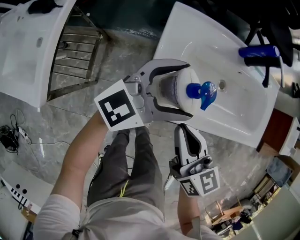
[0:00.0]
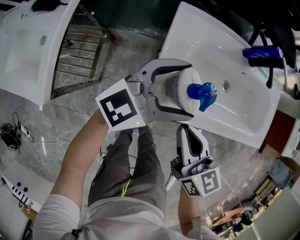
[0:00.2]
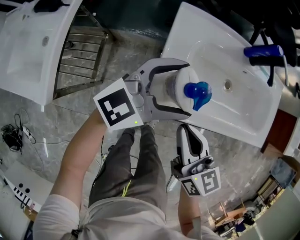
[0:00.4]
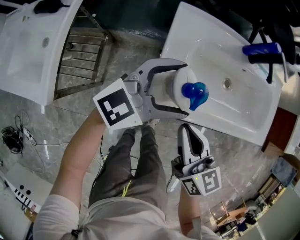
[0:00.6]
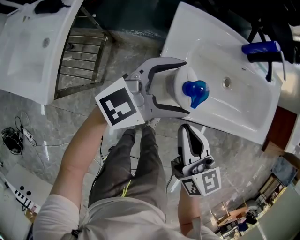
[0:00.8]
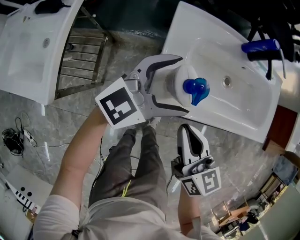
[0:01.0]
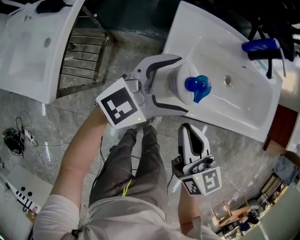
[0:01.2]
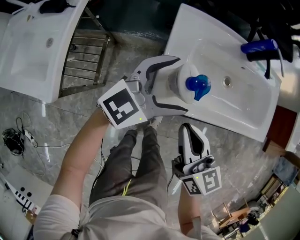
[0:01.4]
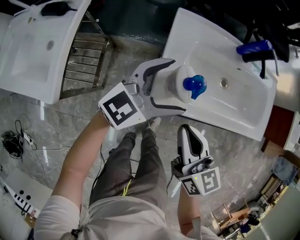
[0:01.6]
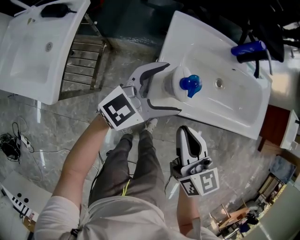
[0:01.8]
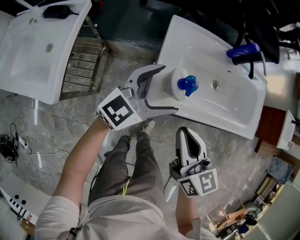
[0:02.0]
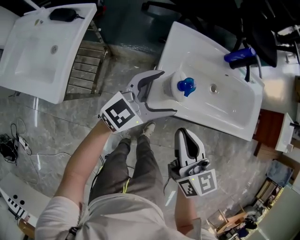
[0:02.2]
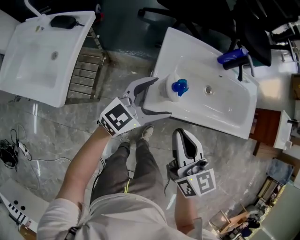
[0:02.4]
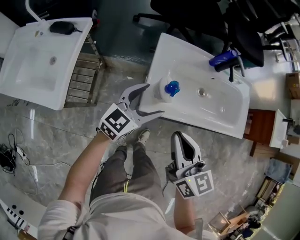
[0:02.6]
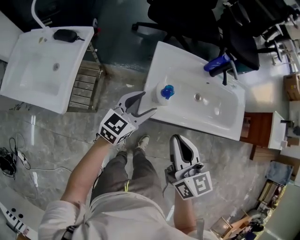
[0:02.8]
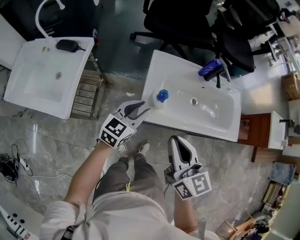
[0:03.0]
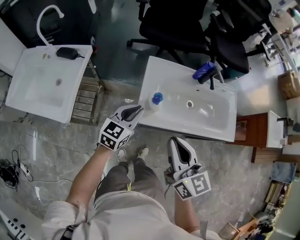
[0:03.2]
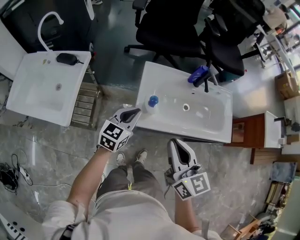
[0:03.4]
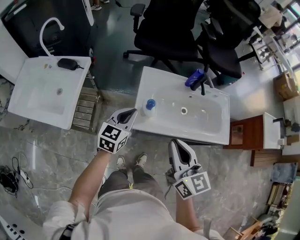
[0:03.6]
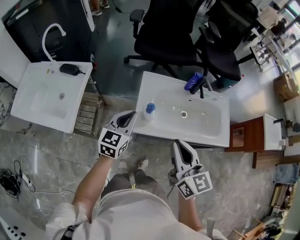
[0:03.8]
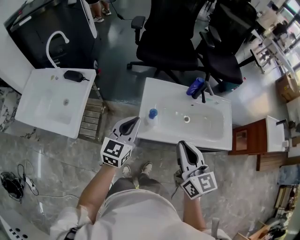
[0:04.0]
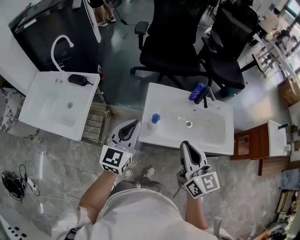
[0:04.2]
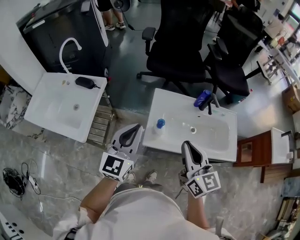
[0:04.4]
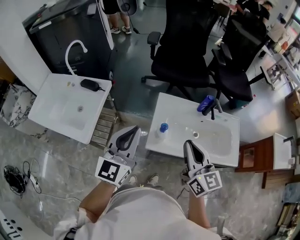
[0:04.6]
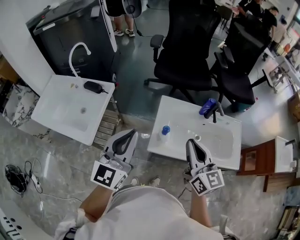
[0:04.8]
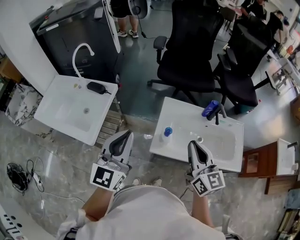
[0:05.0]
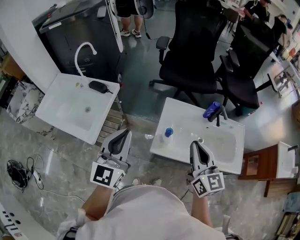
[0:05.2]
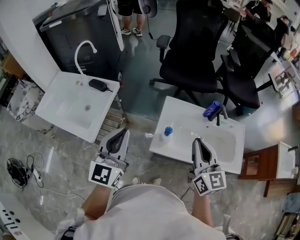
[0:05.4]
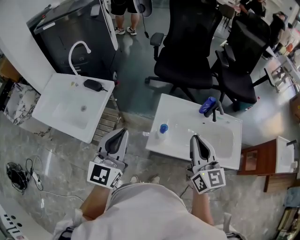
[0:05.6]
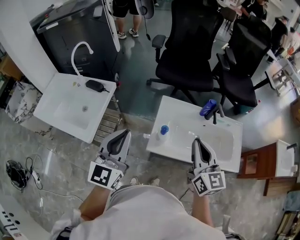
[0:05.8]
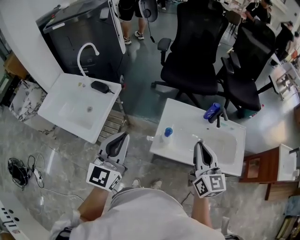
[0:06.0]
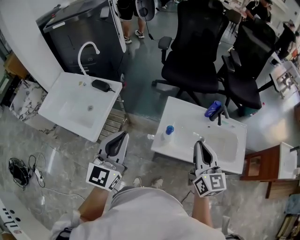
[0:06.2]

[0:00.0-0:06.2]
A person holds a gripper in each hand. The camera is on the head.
0:00.0 to 0:01.6: The left gripper moves about 5 cm. Meanwhile the right gripper moves about 5 cm.
0:01.6 to 0:03.2: The right gripper moves upward, roughly 20 cm. Meanwhile the left gripper moves backward and upward, some 5 cm, swivels about 30 degrees, and closes.
0:03.2 to 0:04.6: The left gripper travels upward by roughly 25 cm, and turns by about 30 degrees. Meanwhile the right gripper travels upward by some 10 cm.
0:04.6 to 0:06.2: The left gripper ends up roughly 5 cm from where it was.

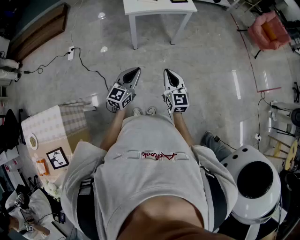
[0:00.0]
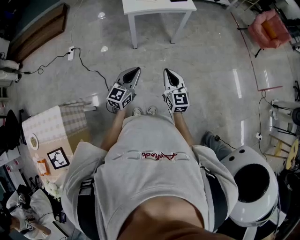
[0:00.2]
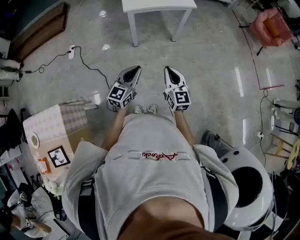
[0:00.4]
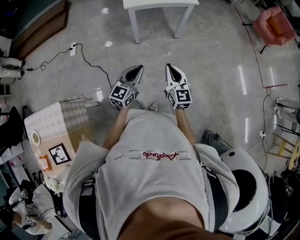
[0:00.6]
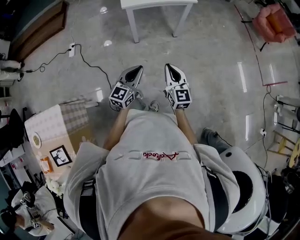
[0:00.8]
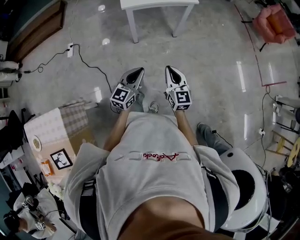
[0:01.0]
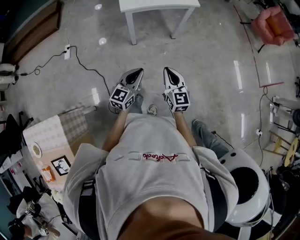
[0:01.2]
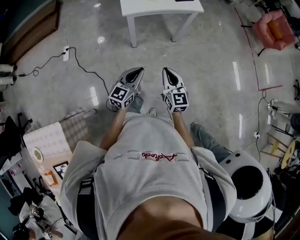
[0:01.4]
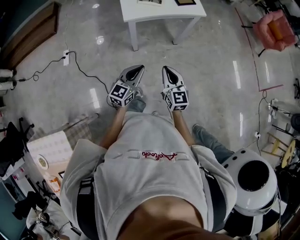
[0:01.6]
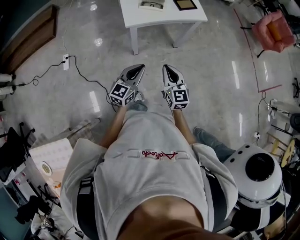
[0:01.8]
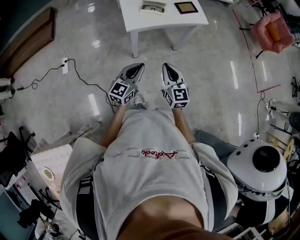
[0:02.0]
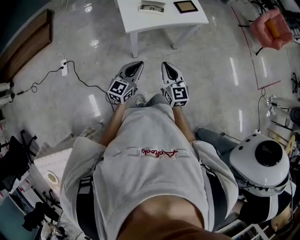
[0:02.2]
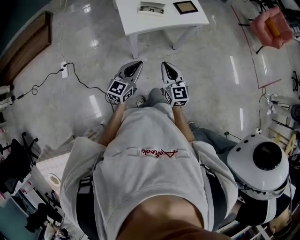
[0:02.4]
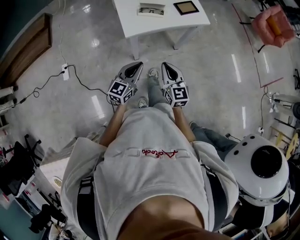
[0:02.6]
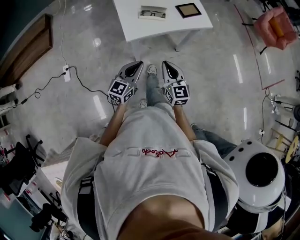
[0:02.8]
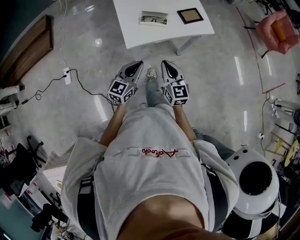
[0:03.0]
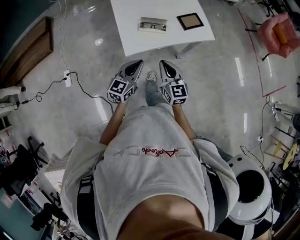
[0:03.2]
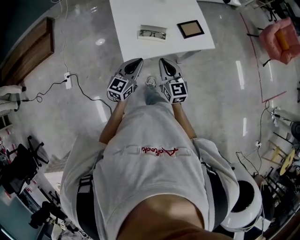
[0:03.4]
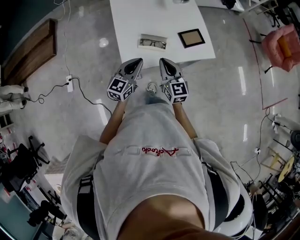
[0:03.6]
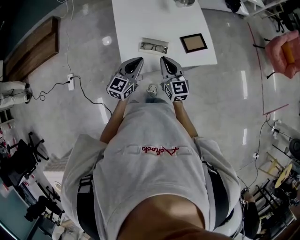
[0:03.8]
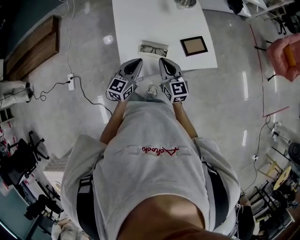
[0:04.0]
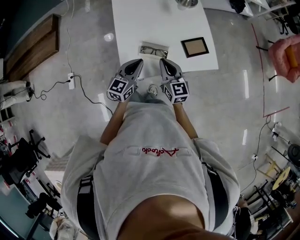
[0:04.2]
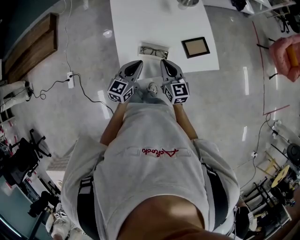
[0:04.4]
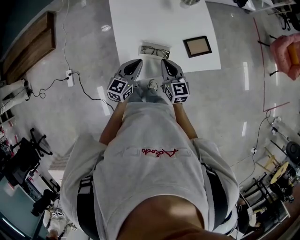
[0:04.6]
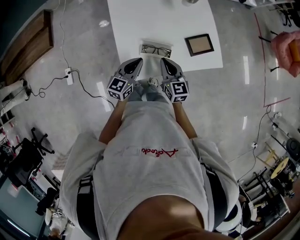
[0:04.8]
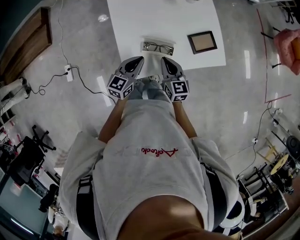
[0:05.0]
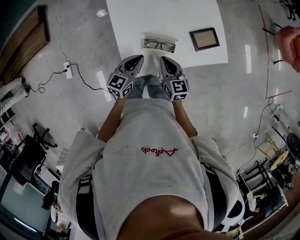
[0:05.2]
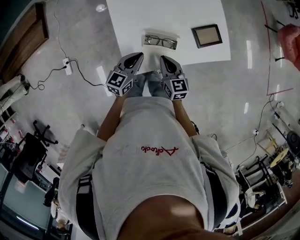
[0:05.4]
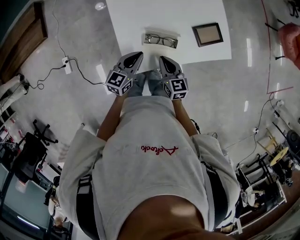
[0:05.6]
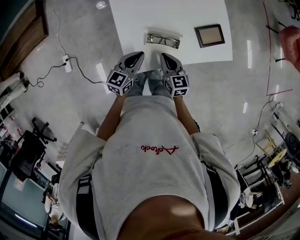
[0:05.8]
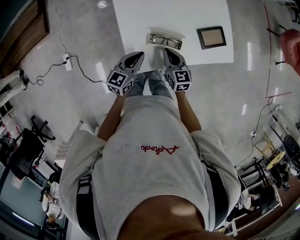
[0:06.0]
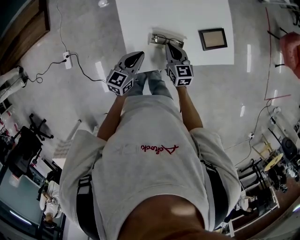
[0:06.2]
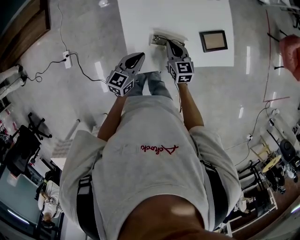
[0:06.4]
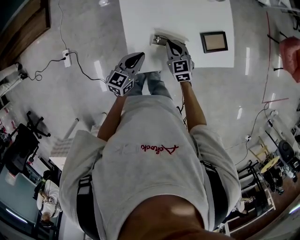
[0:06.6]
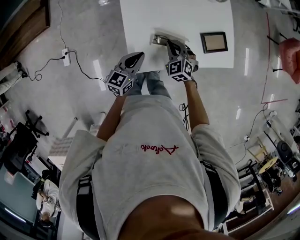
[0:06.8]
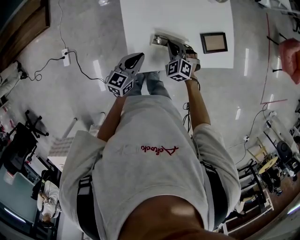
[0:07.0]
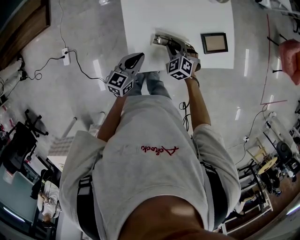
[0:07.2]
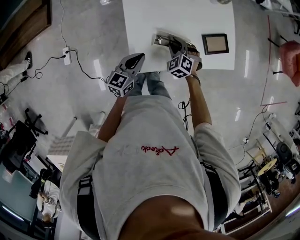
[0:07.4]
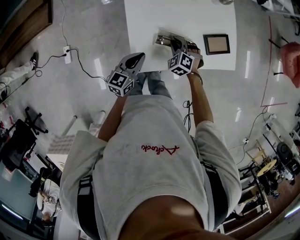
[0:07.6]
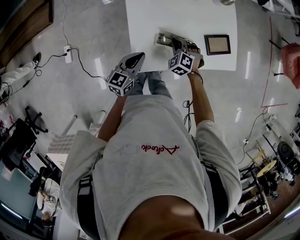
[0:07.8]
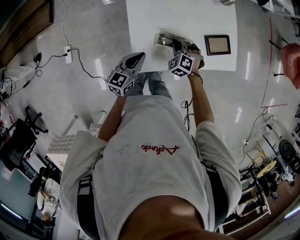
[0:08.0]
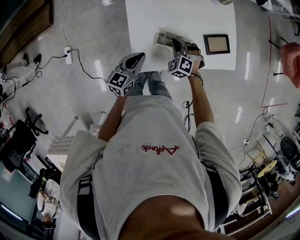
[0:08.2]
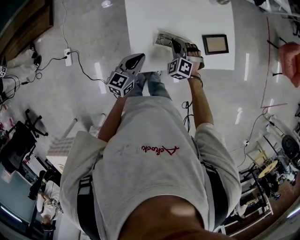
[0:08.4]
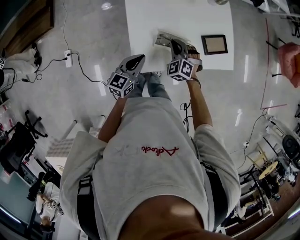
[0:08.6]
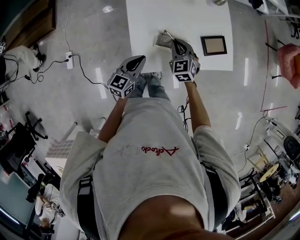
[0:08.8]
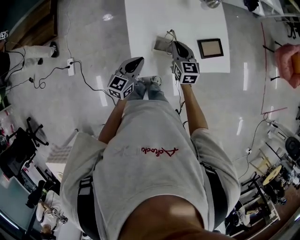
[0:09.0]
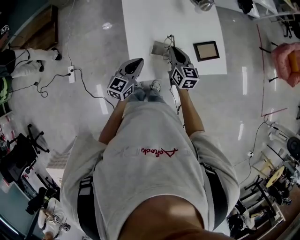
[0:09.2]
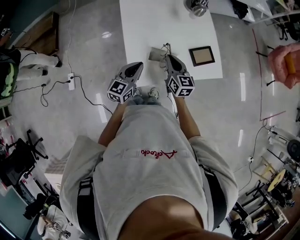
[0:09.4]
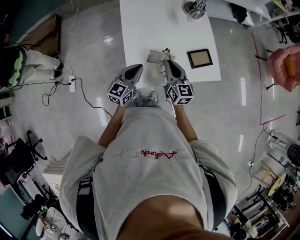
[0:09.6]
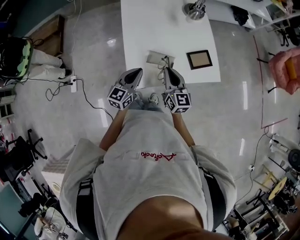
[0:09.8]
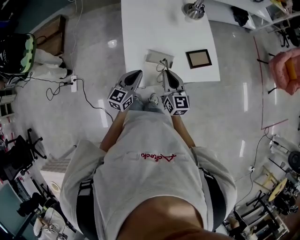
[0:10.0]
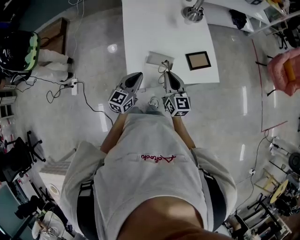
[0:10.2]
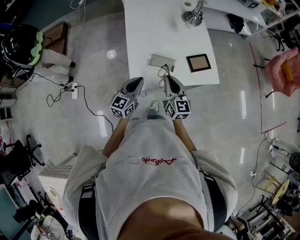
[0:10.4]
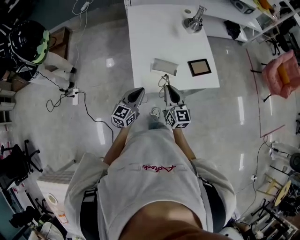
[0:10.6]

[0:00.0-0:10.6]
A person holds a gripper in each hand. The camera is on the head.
0:00.0 to 0:01.6: The left gripper travels forward by approximately 15 cm. Meanwhile the right gripper is displaced forward and to the left by some 15 cm.
0:01.6 to 0:03.0: The grippers both shift forward and to the left by about 20 cm.
0:03.0 to 0:04.6: The two grippers go about 25 cm forward.
0:04.6 to 0:06.0: The right gripper is displaced downward by approximately 10 cm; the left gripper changes place by approximately 5 cm.
0:06.0 to 0:07.6: The right gripper travels downward by about 5 cm, twists roughly 60 degrees counterclockwise, seen from behind, and opens.
0:07.6 to 0:09.0: The right gripper travels upward by approximately 10 cm, and rotates around the line of its fingers by roughly 50 degrees, clockwise from behind.
0:09.0 to 0:10.6: The left gripper shifts about 10 cm backward. The right gripper travels backward and upward by roughly 20 cm.

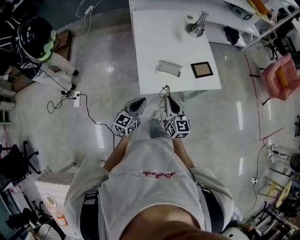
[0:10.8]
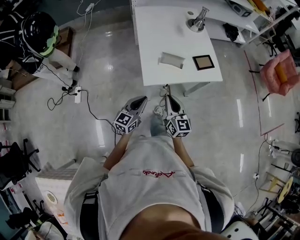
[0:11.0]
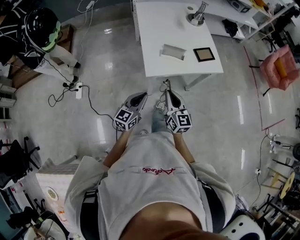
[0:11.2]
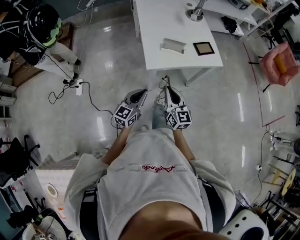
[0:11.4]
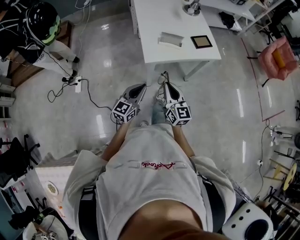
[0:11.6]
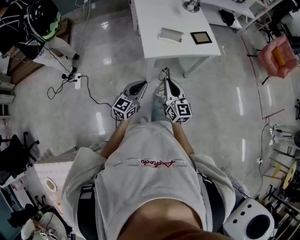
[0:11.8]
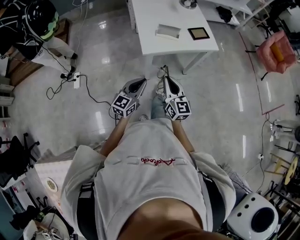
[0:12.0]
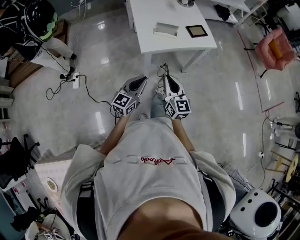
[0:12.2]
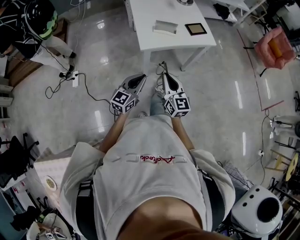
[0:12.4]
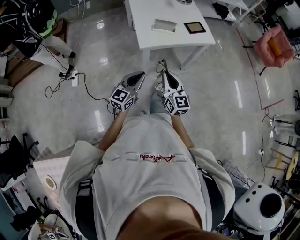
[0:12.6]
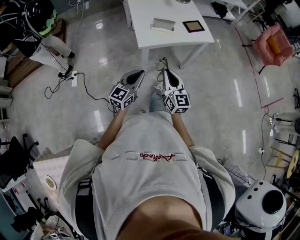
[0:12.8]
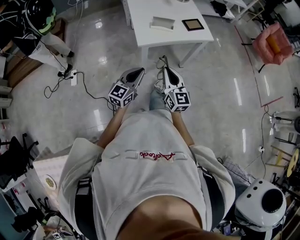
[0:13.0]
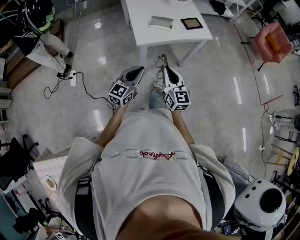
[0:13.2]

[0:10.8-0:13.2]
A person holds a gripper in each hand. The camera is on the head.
0:10.8 to 0:12.0: Both grippers travel together backward, roughly 15 cm.
0:12.0 to 0:13.2: The grippers make only small movements.

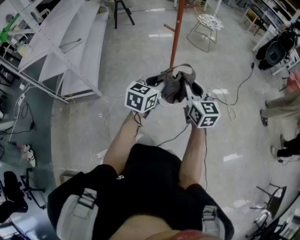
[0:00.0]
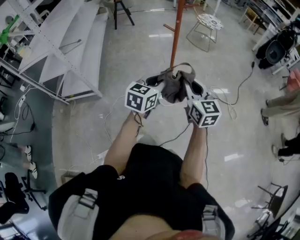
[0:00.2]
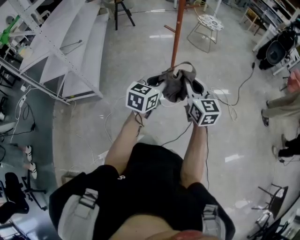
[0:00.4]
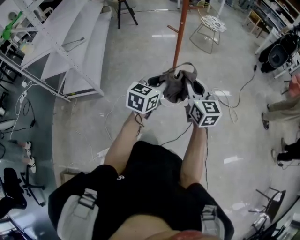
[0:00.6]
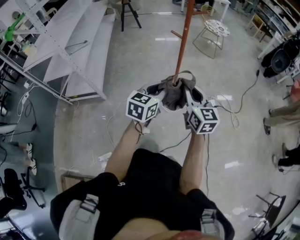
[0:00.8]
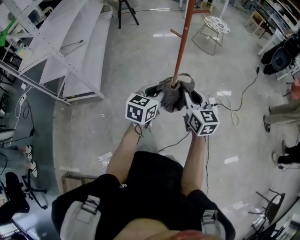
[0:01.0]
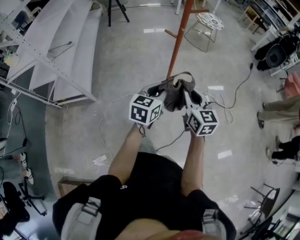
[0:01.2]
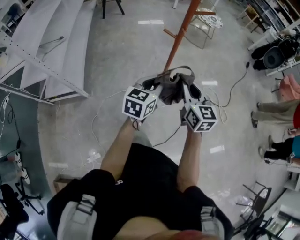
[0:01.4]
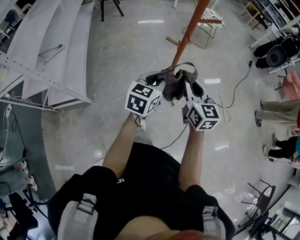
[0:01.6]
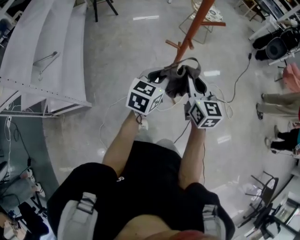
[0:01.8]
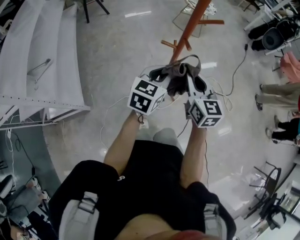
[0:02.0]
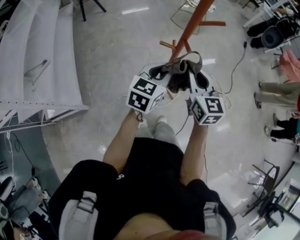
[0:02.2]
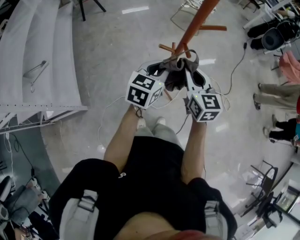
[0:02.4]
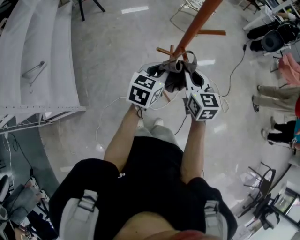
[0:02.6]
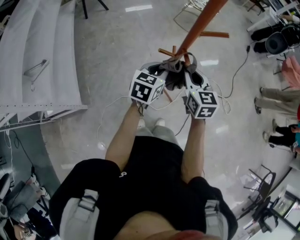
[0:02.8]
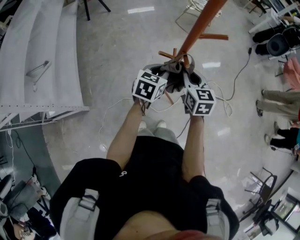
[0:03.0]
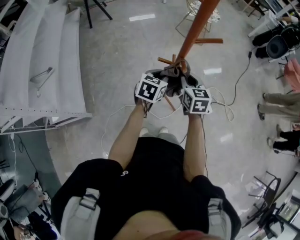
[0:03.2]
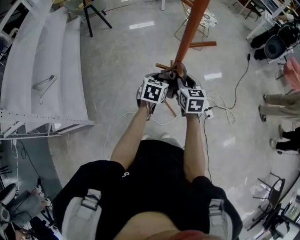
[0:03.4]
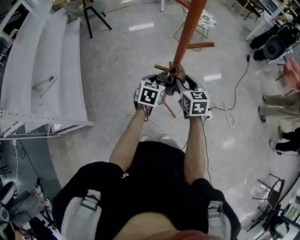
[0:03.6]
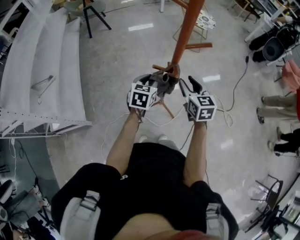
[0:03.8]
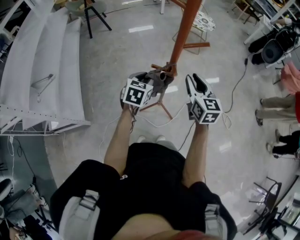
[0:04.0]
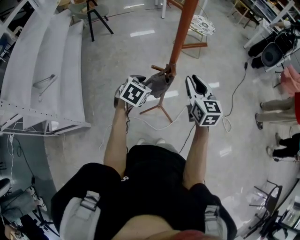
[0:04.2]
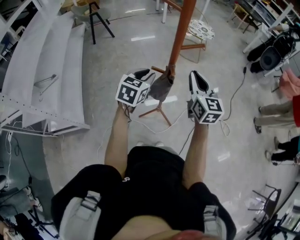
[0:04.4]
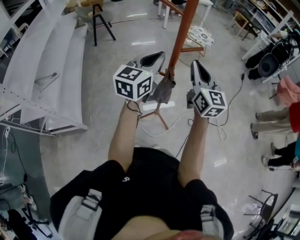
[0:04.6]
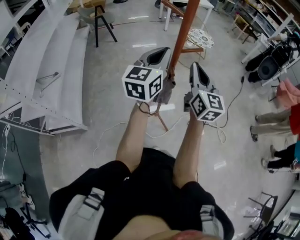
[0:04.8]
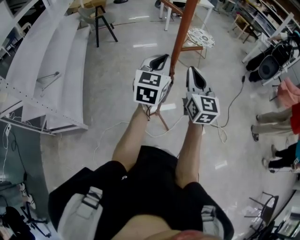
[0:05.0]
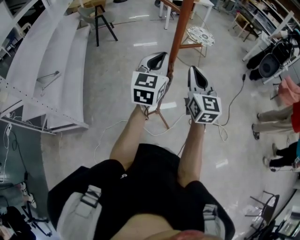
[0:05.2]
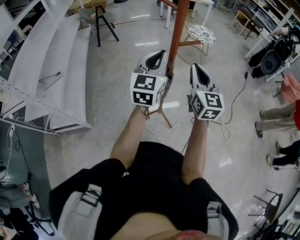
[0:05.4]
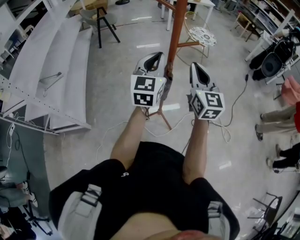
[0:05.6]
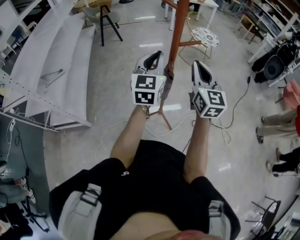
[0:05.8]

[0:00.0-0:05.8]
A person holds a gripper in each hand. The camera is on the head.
0:00.0 to 0:01.4: Both grippers travel together forward, some 10 cm.
0:01.4 to 0:02.8: The two grippers go some 20 cm forward.
0:02.8 to 0:04.4: The left gripper is displaced upward by about 5 cm, while the right gripper heads upward, covering some 10 cm, and opens, then closes once more.
0:04.4 to 0:05.8: The right gripper goes approximately 5 cm upward, while the left gripper heads upward, covering roughly 15 cm, rotates some 30 degrees, and closes its fingers.
